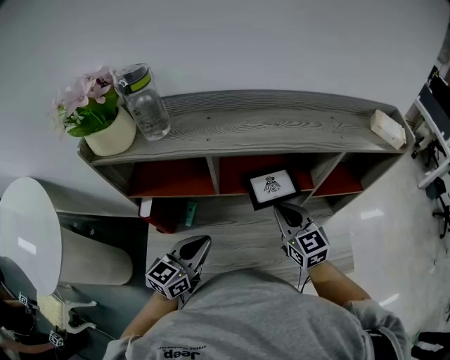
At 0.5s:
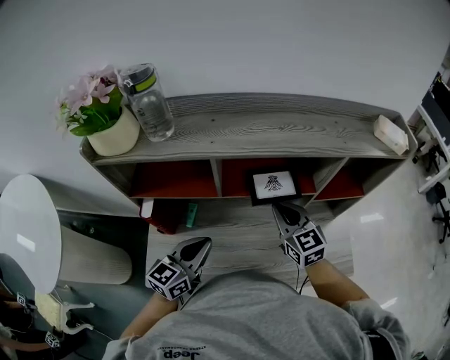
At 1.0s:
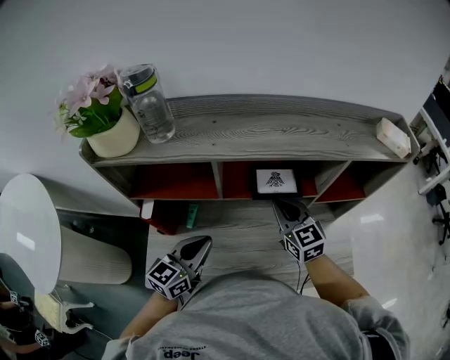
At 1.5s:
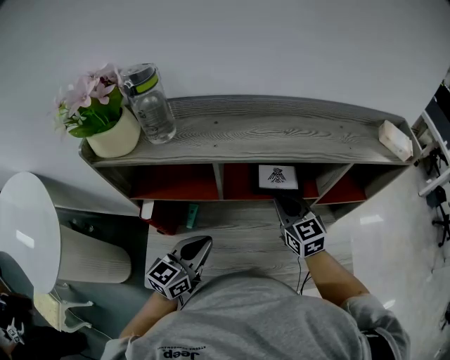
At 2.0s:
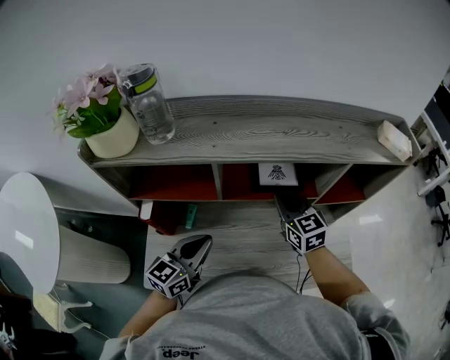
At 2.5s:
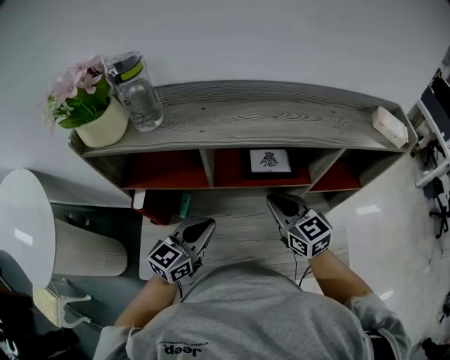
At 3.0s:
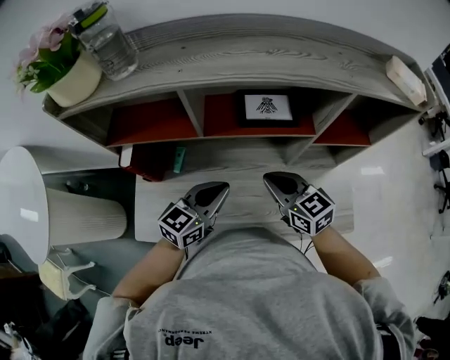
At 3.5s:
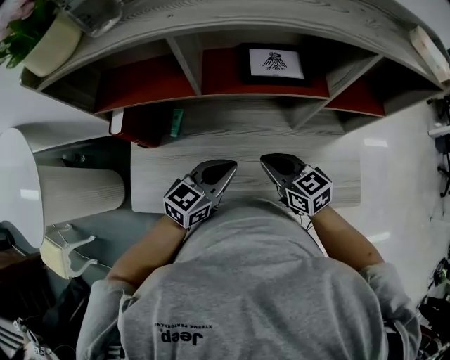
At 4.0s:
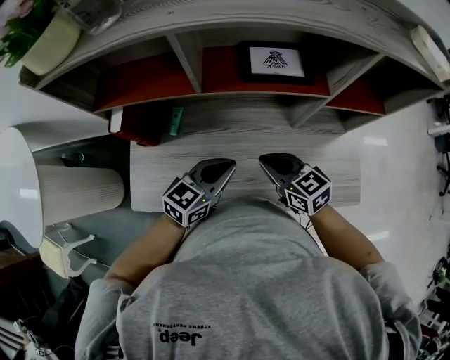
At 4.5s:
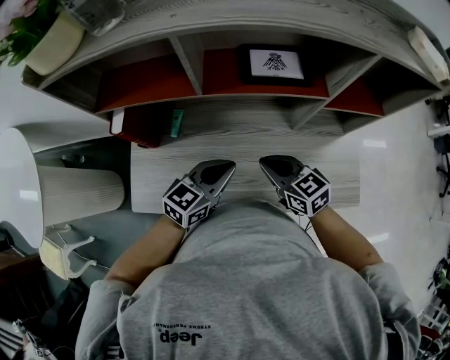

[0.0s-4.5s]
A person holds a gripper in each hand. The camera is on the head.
0.0s to 2.0s: The right gripper travels forward by some 5 cm.
2.0s to 4.5s: The left gripper heads downward and to the right, covering some 15 cm, while the right gripper is displaced backward and downward by some 20 cm, and changes its angle by about 30 degrees.

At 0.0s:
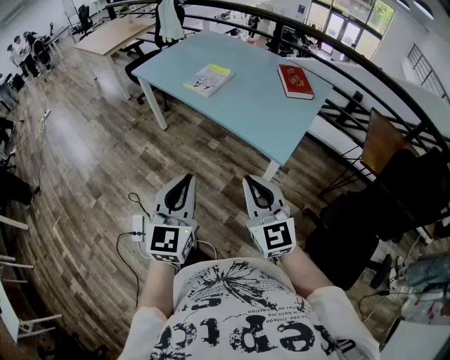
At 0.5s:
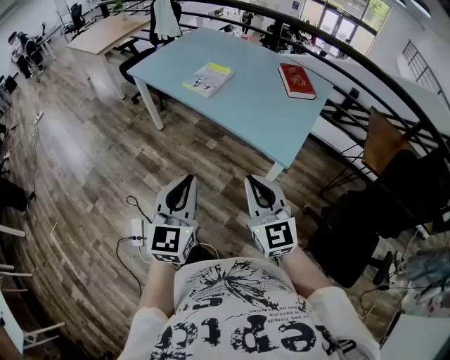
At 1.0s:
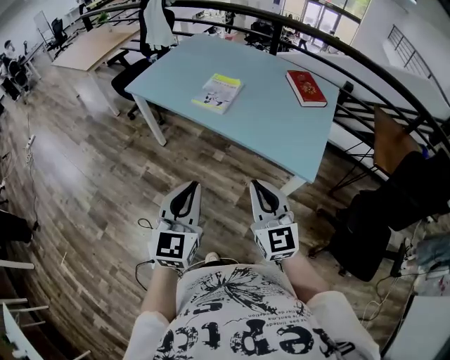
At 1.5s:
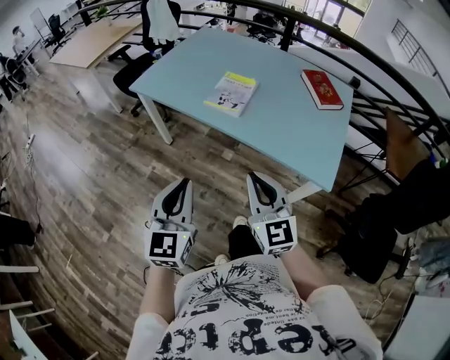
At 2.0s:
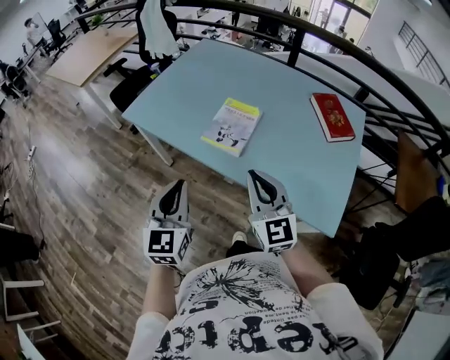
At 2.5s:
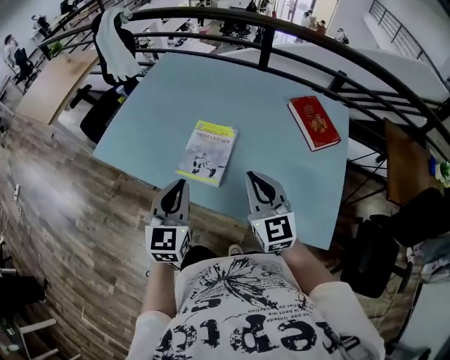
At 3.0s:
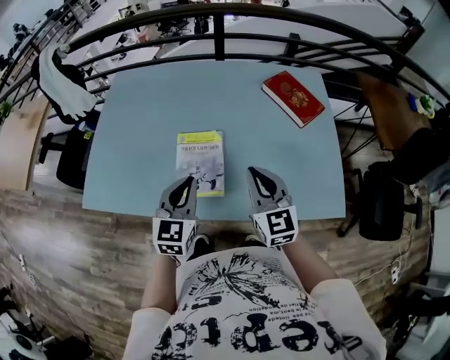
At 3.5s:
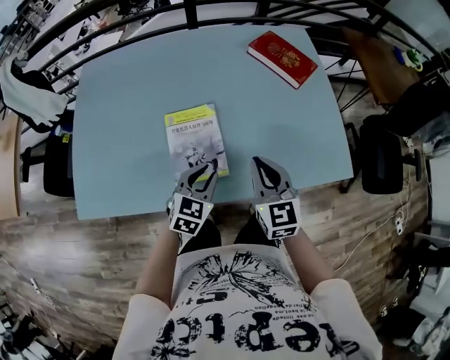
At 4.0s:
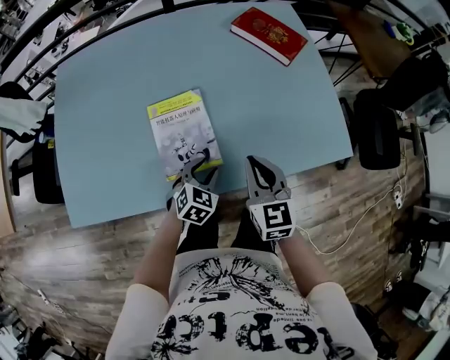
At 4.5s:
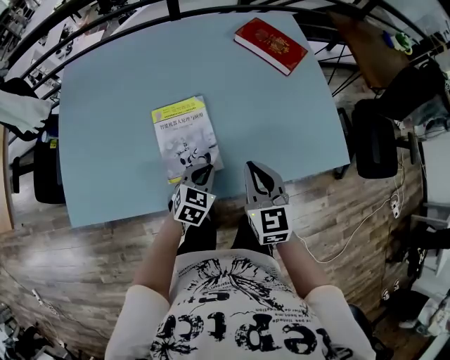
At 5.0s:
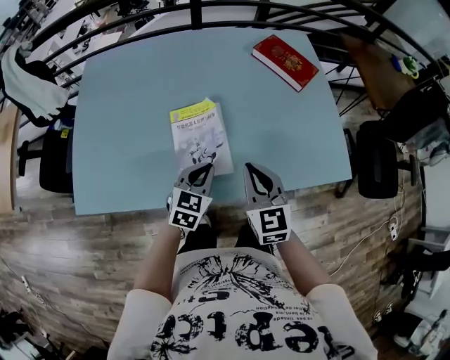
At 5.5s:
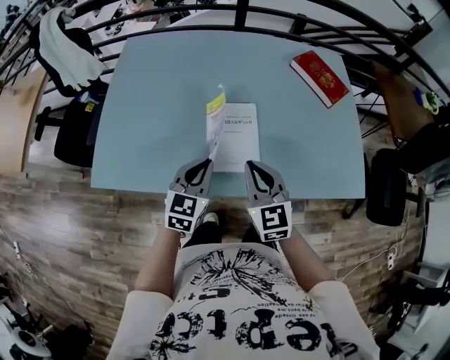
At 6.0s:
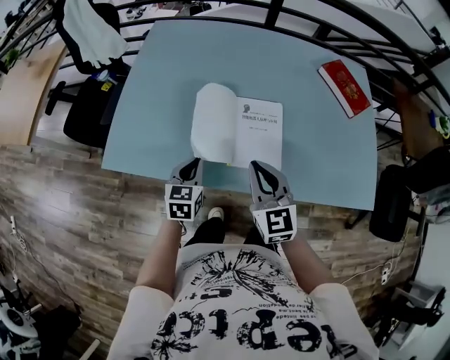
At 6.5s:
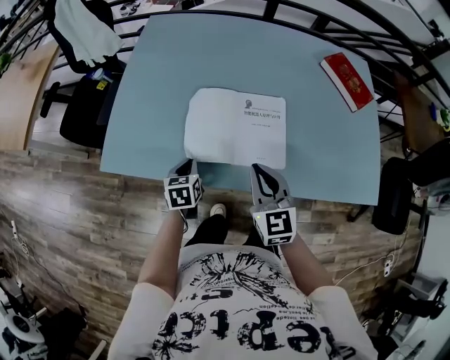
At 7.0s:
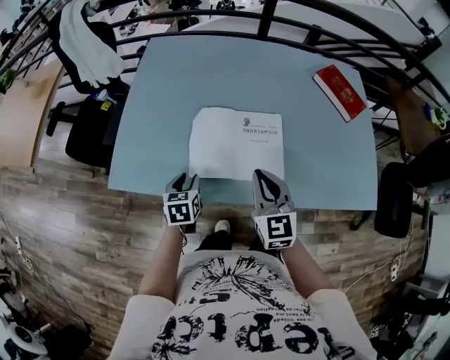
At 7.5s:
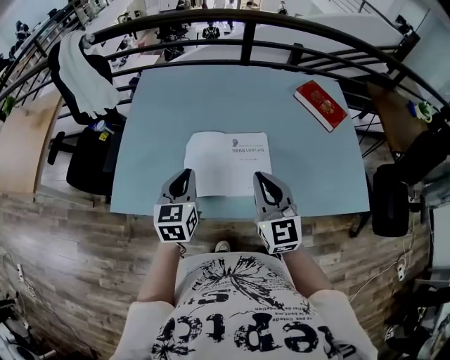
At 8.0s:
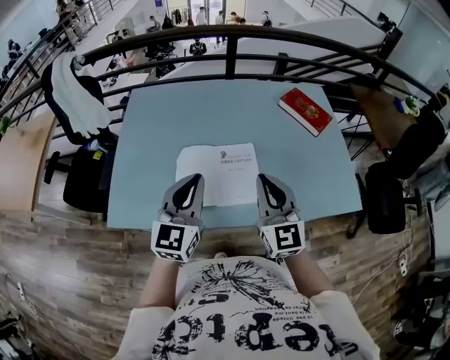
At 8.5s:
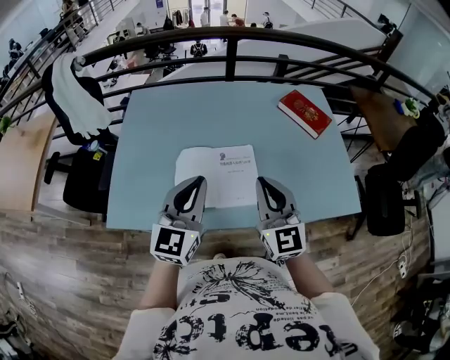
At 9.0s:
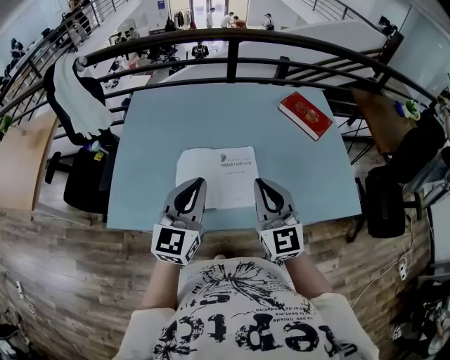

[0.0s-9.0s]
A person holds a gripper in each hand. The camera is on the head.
0.0s to 2.0s: The pair of grippers is taken forward and to the left, approximately 50 cm.
2.0s to 4.5s: The left gripper changes place by about 40 cm, points its fingers some 30 degrees further downward, and opens and closes again, while the right gripper shifts by about 20 cm, and turns by about 50 degrees.
4.5s to 7.0s: The right gripper shifts by roughly 20 cm. Meanwhile the left gripper moves up and down over approximately 15 cm, changing direction 2 times, rotates some 50 degrees, and opens its fingers.
7.0s to 9.0s: The right gripper travels upward and to the right by approximately 15 cm. Meanwhile the left gripper goes approximately 30 cm upward, tips its fingers upward by some 40 degrees, and closes up.

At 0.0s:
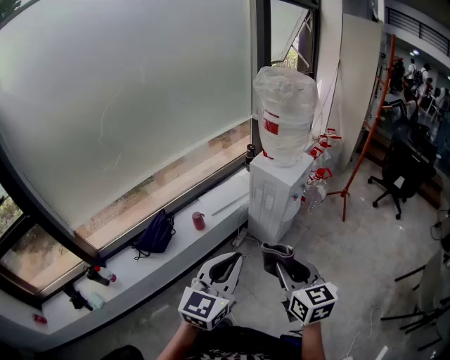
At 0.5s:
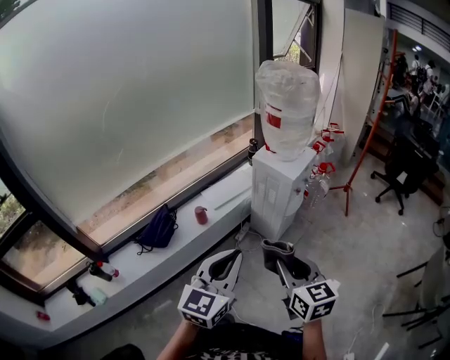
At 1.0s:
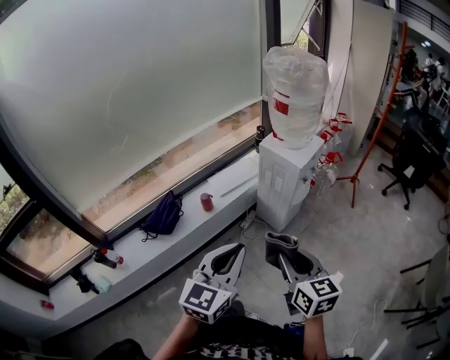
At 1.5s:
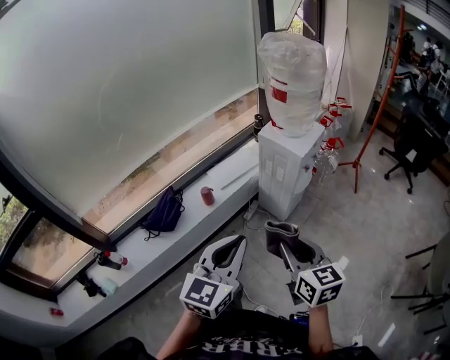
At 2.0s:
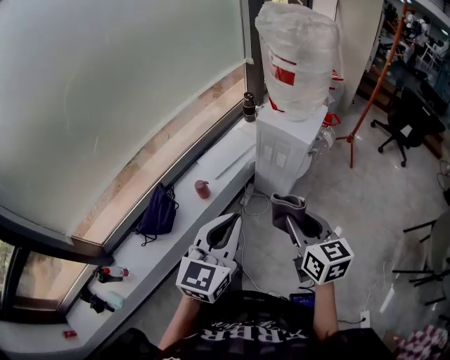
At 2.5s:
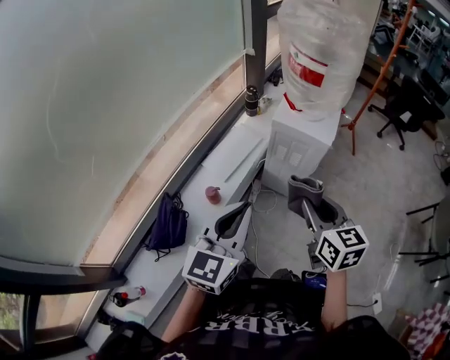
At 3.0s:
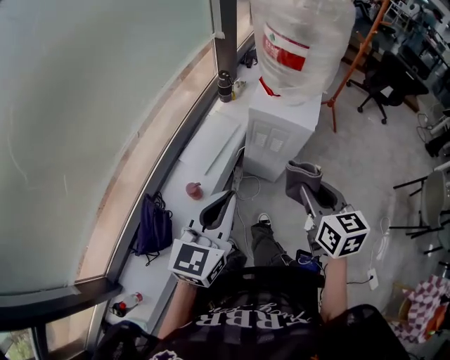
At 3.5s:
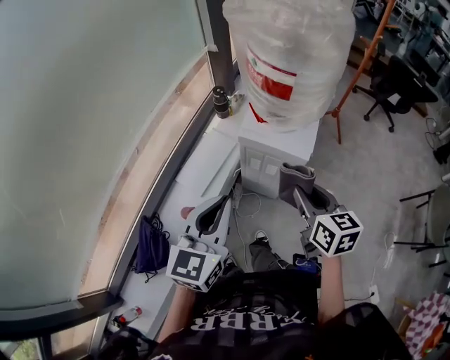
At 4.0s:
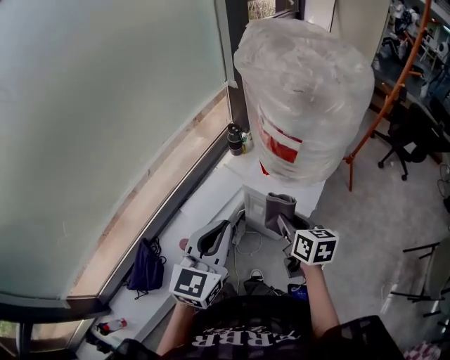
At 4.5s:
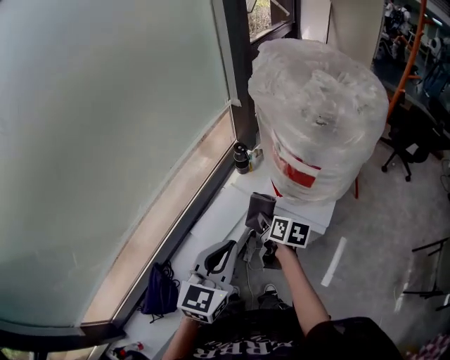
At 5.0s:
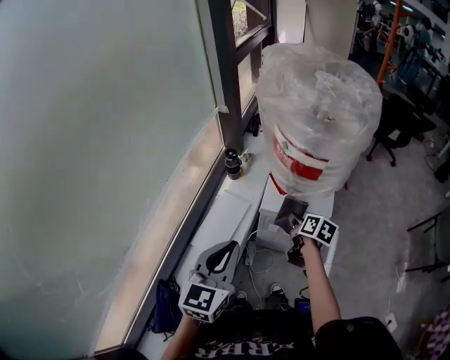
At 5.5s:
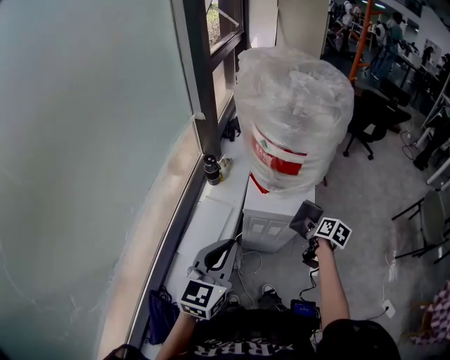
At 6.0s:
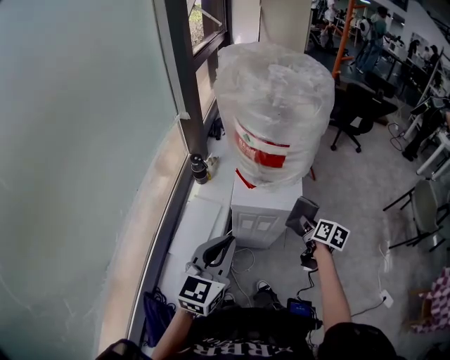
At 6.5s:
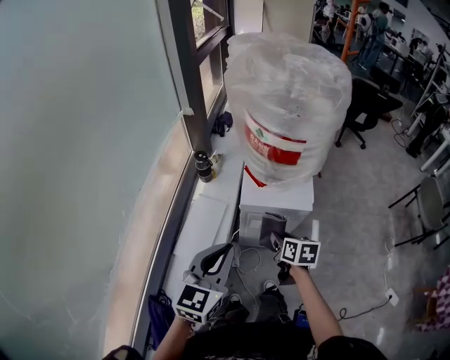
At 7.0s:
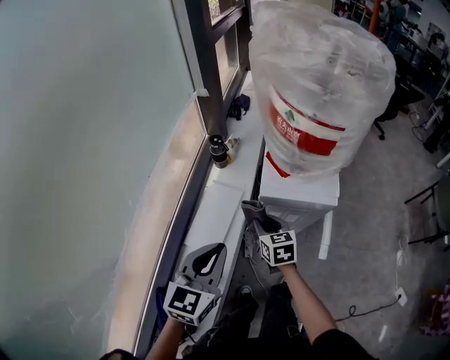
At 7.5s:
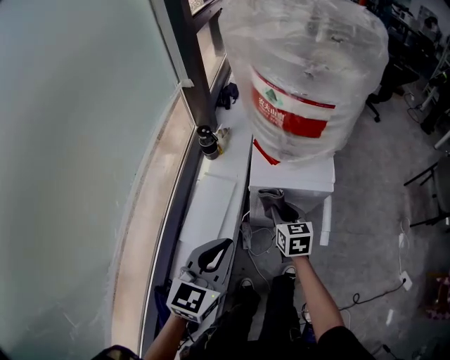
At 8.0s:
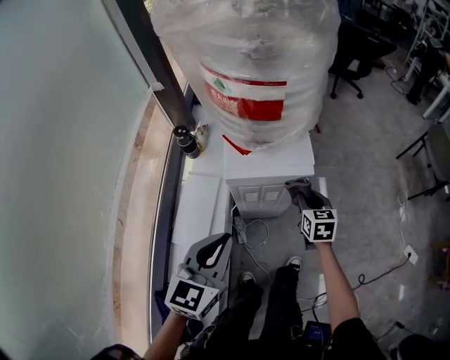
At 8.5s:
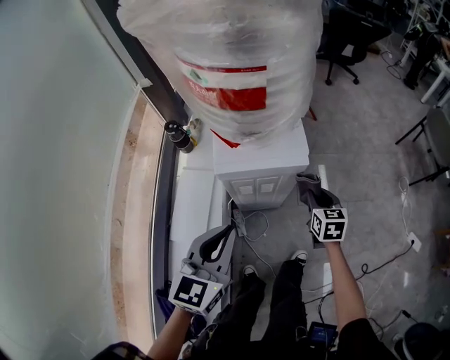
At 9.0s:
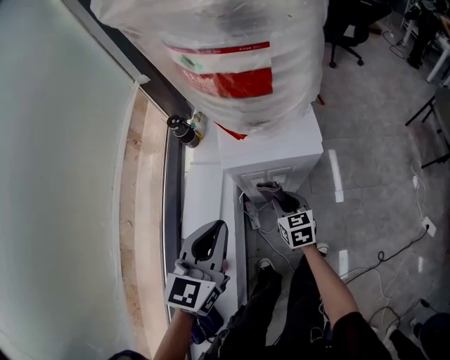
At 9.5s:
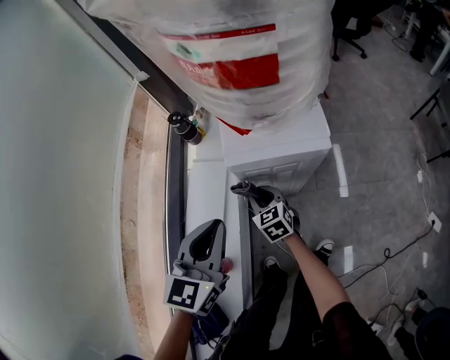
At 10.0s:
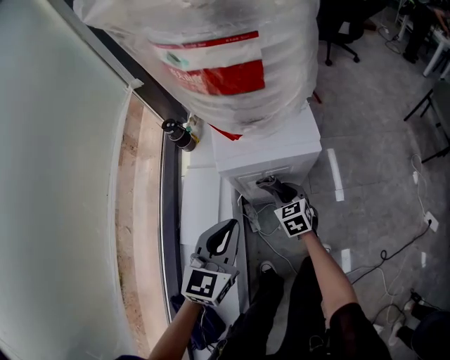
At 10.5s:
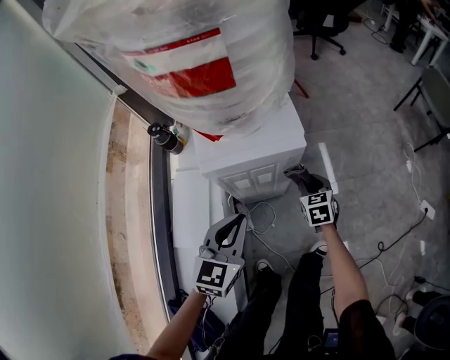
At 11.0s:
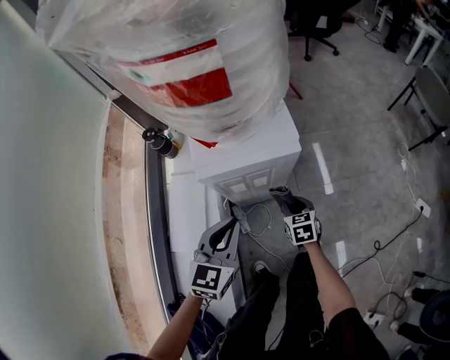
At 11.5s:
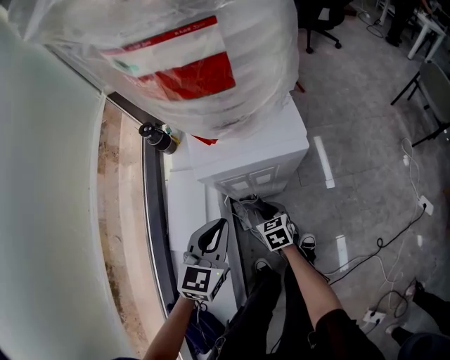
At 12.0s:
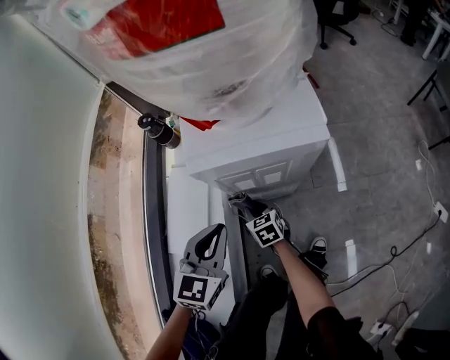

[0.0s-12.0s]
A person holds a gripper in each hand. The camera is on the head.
0.0s to 2.0s: Both grippers travel together forward and to the left, roughly 15 cm.
2.0s to 4.0s: The grippers both shift forward by roughly 35 cm. The right gripper swivels roughly 20 degrees.
4.0s to 6.0s: The right gripper shifts by approximately 10 cm, and rotates some 40 degrees; the left gripper changes its angle by about 30 degrees.
6.0s to 8.0s: Both grippers travel together downward, some 10 cm. The right gripper travels to the left and back again, about 25 cm each way, and turns by roughly 30 degrees.
8.0s to 10.0s: The right gripper swings left and right, roughly 25 cm each way, with 2 reversals, while the left gripper shifts about 10 cm downward.
10.0s to 12.0s: The right gripper is displaced downward and to the left by roughly 20 cm, while the left gripper moves downward, roughly 15 cm.

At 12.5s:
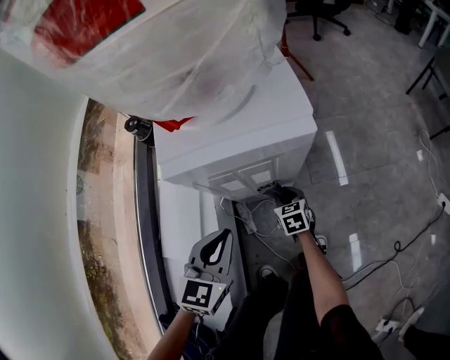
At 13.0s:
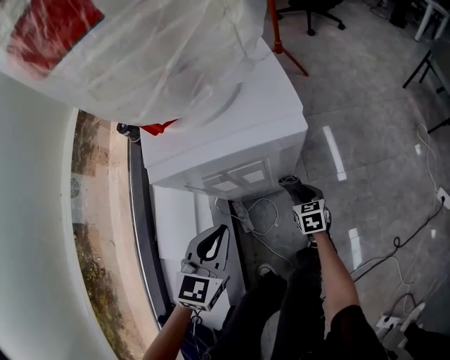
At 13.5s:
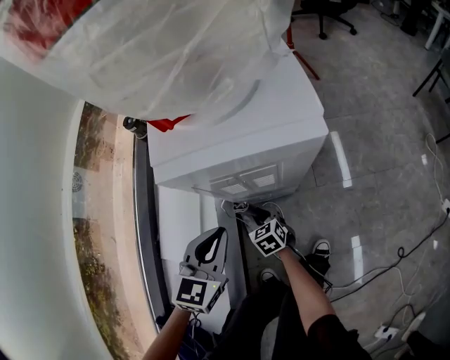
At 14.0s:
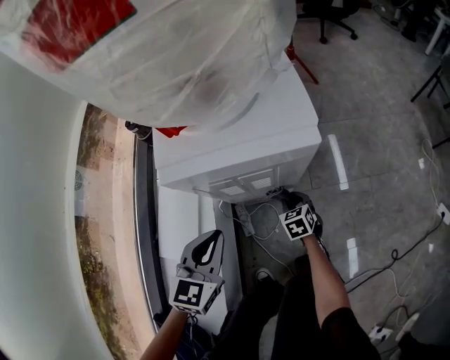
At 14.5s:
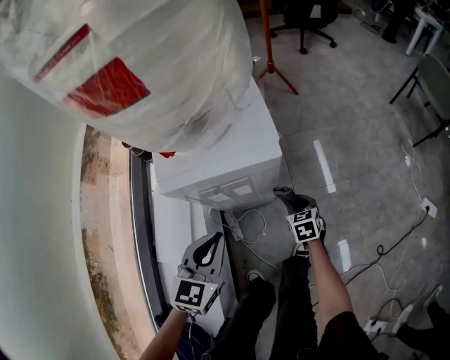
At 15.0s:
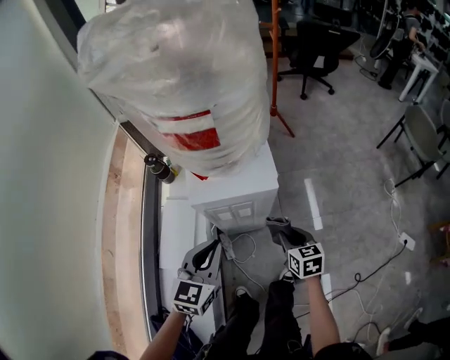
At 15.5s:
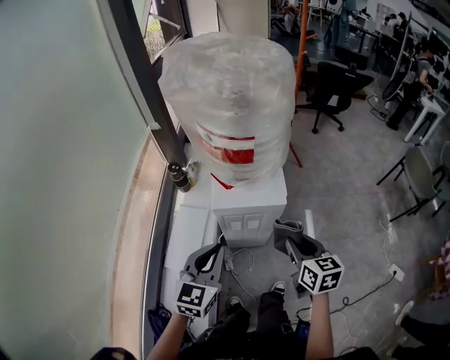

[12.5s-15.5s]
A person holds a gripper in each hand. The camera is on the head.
12.5s to 14.0s: The right gripper goes left and right, approximately 20 cm each way, reversing 2 times.
14.0s to 15.5s: The right gripper shifts some 50 cm upward, and swivels about 30 degrees, while the left gripper travels upward by roughly 30 cm.
